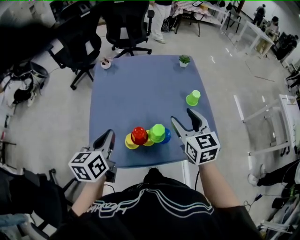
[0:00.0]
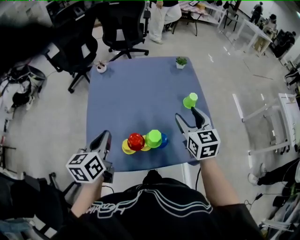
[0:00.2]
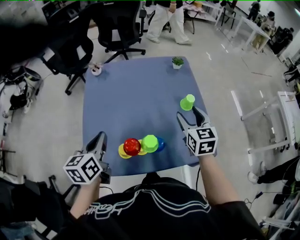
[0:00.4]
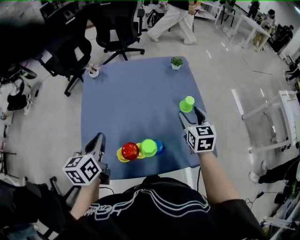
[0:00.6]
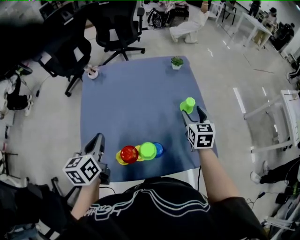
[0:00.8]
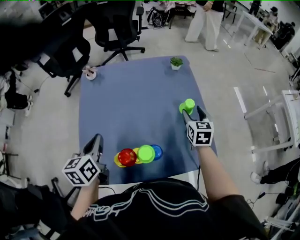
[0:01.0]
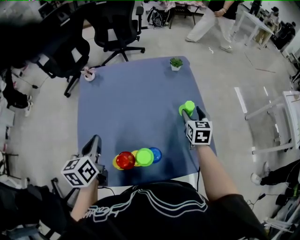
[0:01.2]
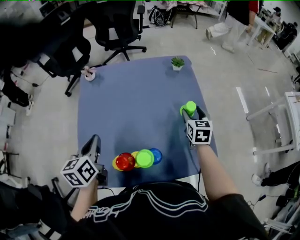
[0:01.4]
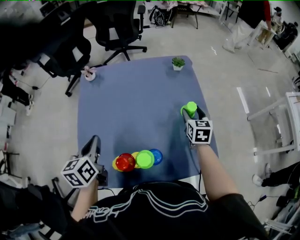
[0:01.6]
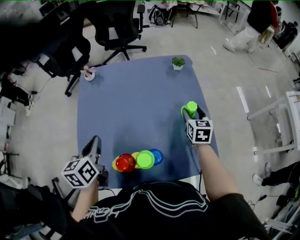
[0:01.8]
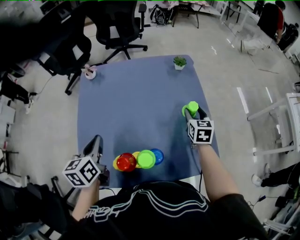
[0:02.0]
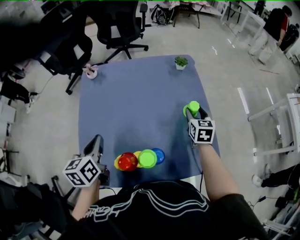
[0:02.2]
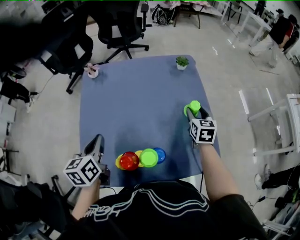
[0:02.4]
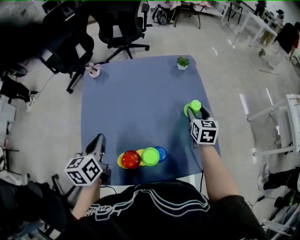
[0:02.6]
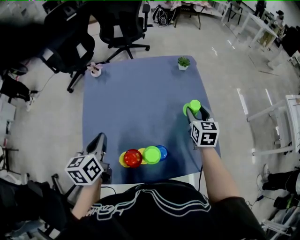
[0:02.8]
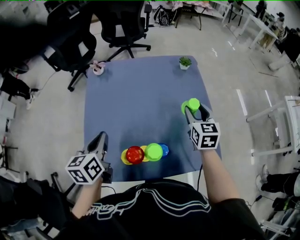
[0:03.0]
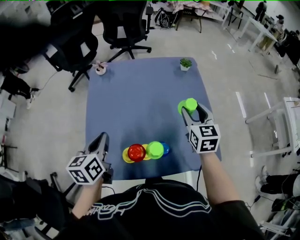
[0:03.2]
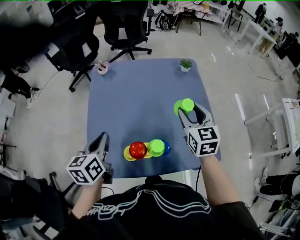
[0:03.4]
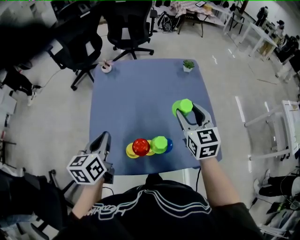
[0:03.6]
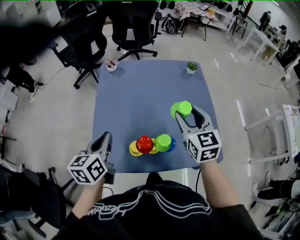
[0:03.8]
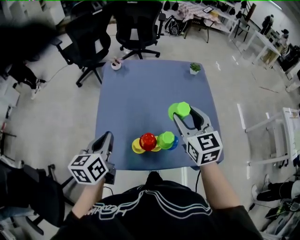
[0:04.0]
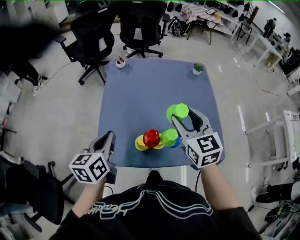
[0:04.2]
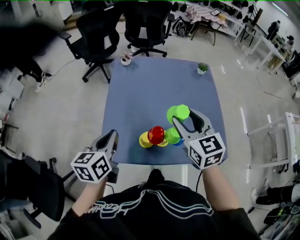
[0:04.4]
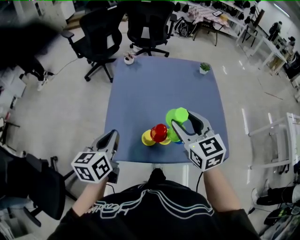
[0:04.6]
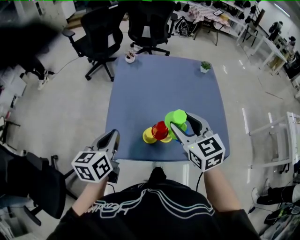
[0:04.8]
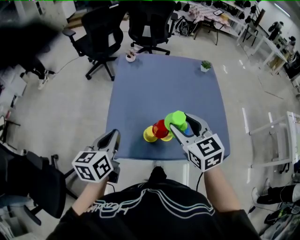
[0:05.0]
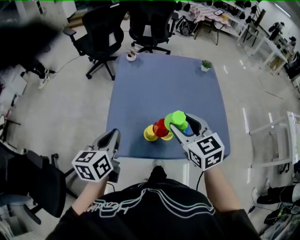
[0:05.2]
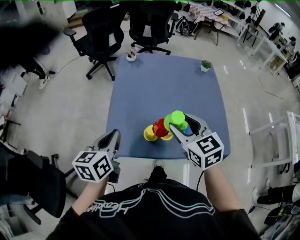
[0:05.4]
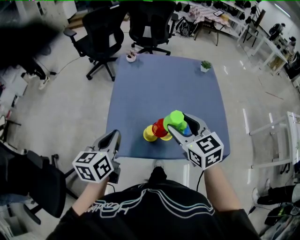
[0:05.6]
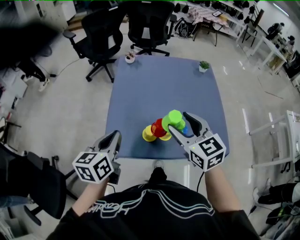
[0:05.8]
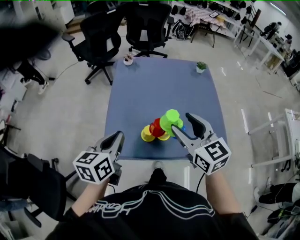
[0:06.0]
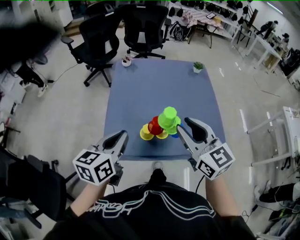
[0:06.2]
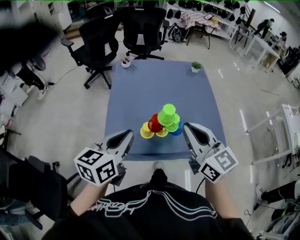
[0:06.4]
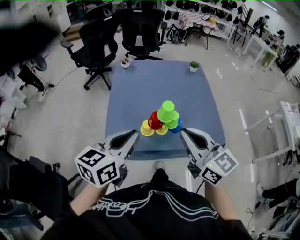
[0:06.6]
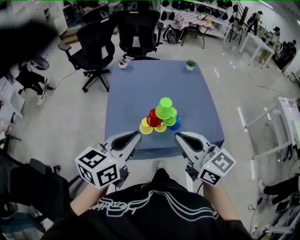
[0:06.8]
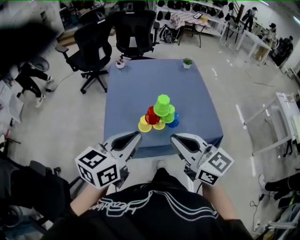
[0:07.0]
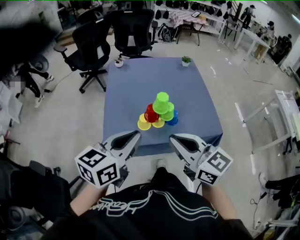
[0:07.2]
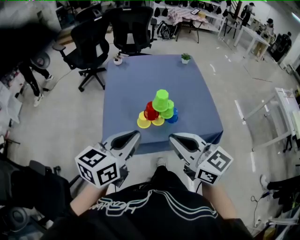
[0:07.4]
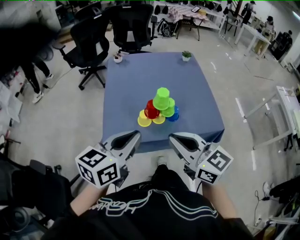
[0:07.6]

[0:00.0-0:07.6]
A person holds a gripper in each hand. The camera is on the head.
0:00.0 to 0:01.6: The left gripper shifts about 10 cm forward. Meanwhile the right gripper heads forward, downward and to the right, covering approximately 25 cm, and rotates roughly 20 degrees.
0:01.6 to 0:03.0: The right gripper moves upward and to the left, approximately 10 cm.
0:03.0 to 0:04.6: The left gripper goes approximately 15 cm backward and to the left, while the right gripper heads to the left, backward and upward, covering roughly 30 cm, and swivels some 30 degrees.
0:04.6 to 0:06.0: The right gripper moves roughly 5 cm.
0:06.0 to 0:07.6: The left gripper is displaced backward, to the right and upward by approximately 15 cm, and changes its angle by some 20 degrees; the right gripper travels backward by roughly 15 cm, and closes up.

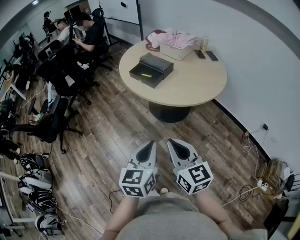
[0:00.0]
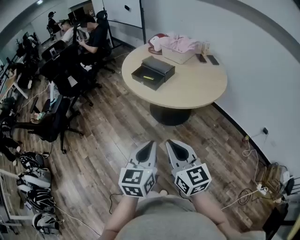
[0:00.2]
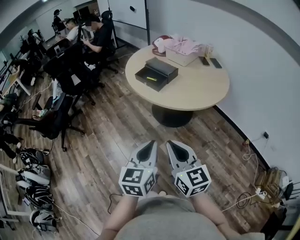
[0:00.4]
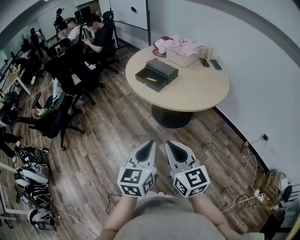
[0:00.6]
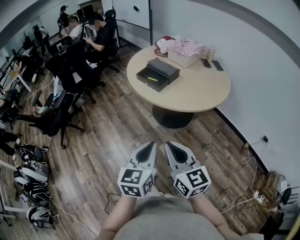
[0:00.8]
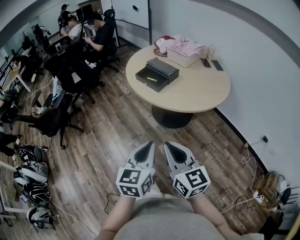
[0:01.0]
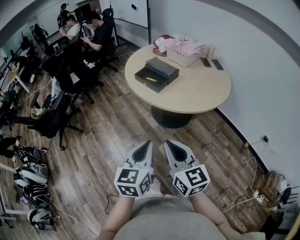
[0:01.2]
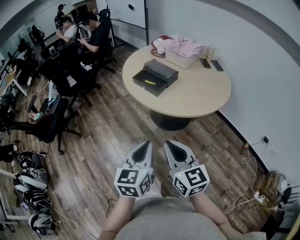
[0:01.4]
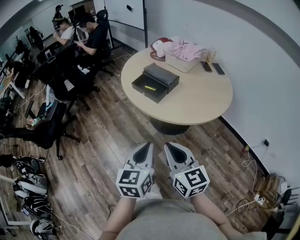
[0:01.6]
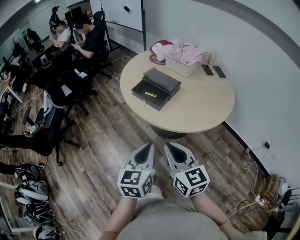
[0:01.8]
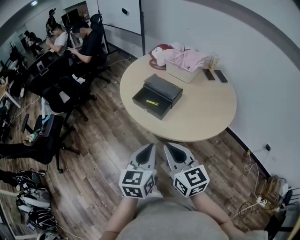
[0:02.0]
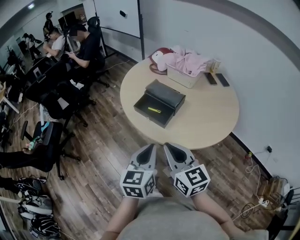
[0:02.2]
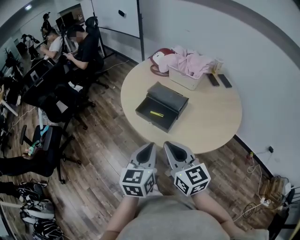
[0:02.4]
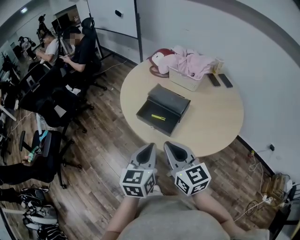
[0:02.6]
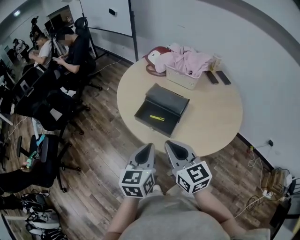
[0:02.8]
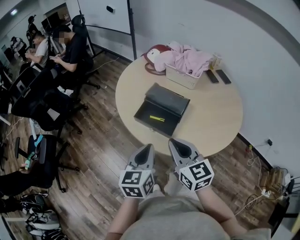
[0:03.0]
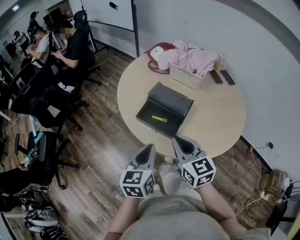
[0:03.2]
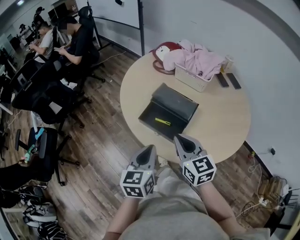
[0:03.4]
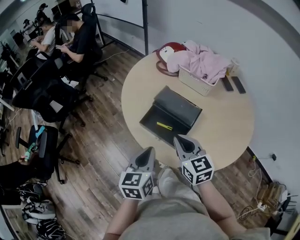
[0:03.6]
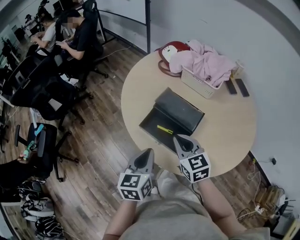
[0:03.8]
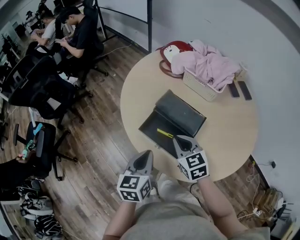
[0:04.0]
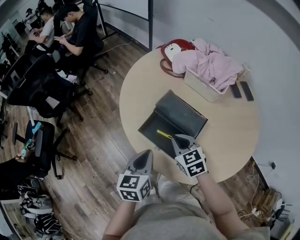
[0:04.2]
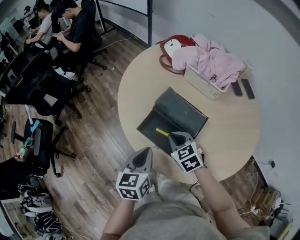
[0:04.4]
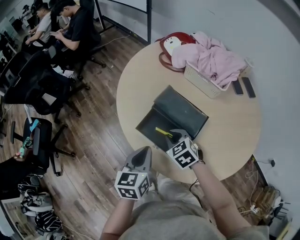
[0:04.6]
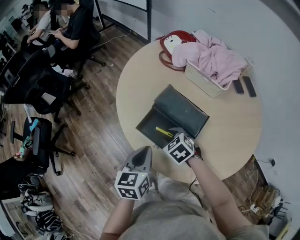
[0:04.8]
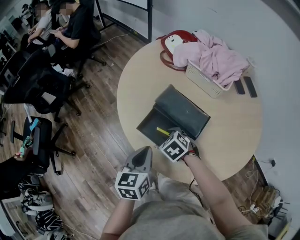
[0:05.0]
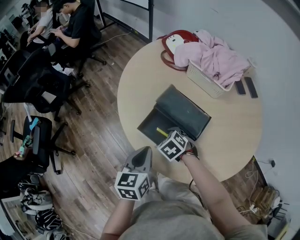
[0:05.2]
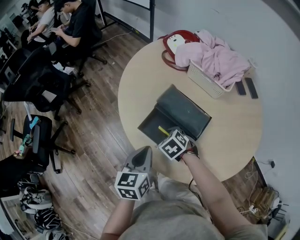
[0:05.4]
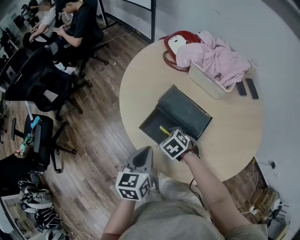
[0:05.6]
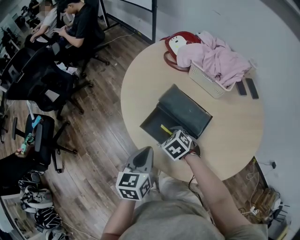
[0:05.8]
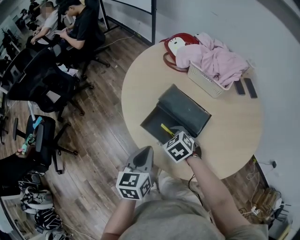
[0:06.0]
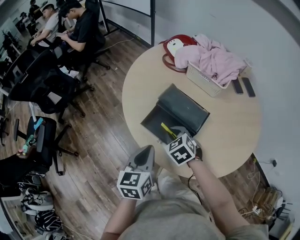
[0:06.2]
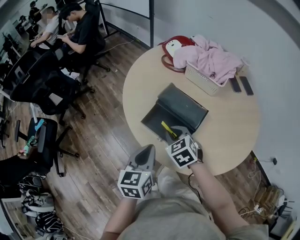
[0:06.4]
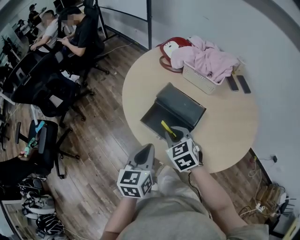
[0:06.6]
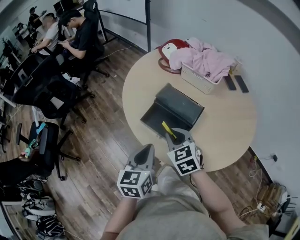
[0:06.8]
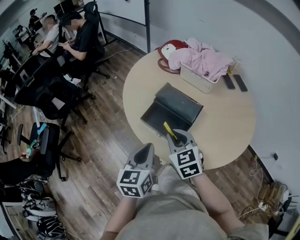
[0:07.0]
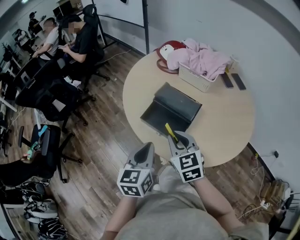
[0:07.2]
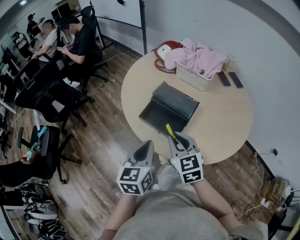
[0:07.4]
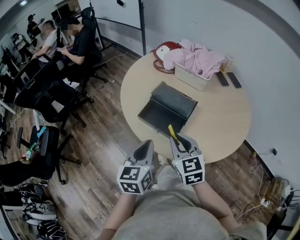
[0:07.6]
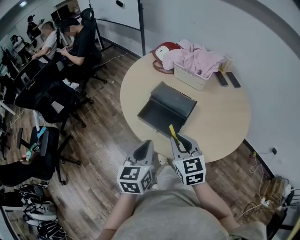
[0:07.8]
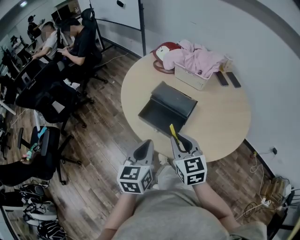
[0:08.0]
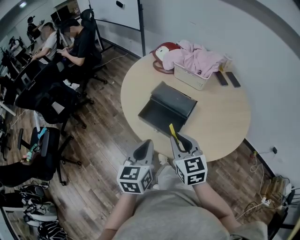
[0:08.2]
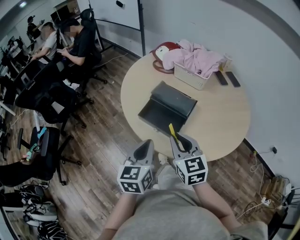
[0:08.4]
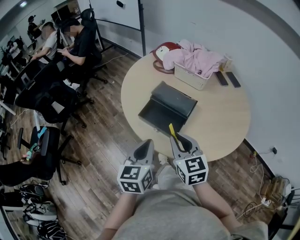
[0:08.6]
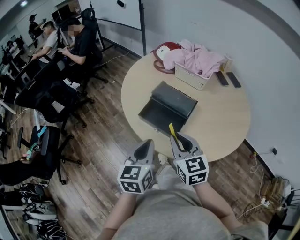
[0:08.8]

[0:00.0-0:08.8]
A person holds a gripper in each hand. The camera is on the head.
0:00.0 to 0:01.4: There are only small adjustments of the grippers.
0:01.4 to 0:03.0: The two grippers go approximately 35 cm forward.
0:03.0 to 0:04.4: The left gripper is displaced forward and downward by approximately 15 cm. Meanwhile the right gripper is displaced forward and downward by some 25 cm, and angles its fingers downward, by roughly 30 degrees.
0:04.4 to 0:05.8: The right gripper travels downward by some 5 cm, and rotates approximately 20 degrees.
0:05.8 to 0:07.4: The right gripper travels upward and backward by some 25 cm, and angles its fingers upward, by roughly 40 degrees; the left gripper heads backward and upward, covering approximately 10 cm.
0:07.4 to 0:08.8: The grippers make only small movements.

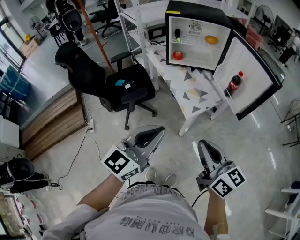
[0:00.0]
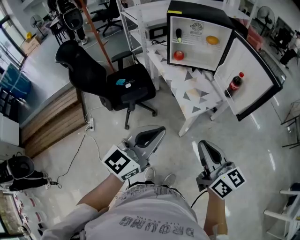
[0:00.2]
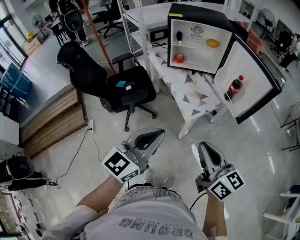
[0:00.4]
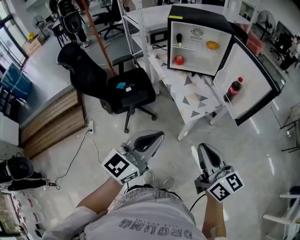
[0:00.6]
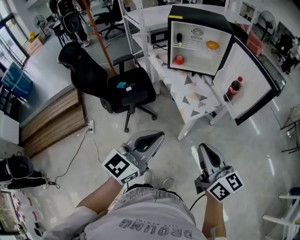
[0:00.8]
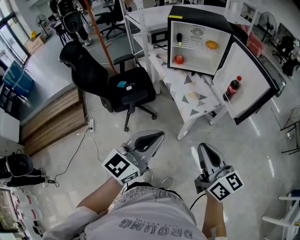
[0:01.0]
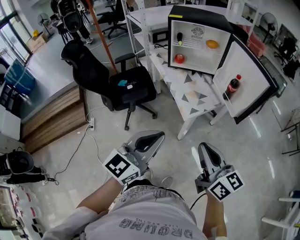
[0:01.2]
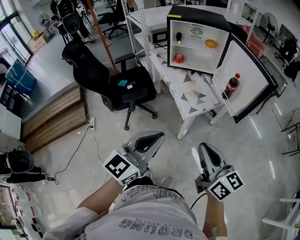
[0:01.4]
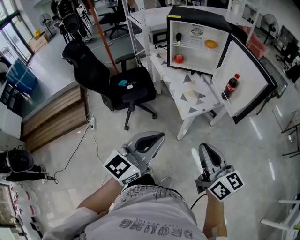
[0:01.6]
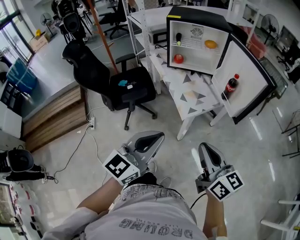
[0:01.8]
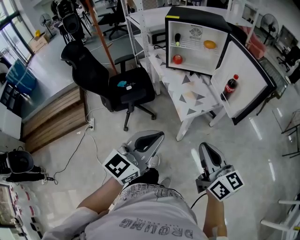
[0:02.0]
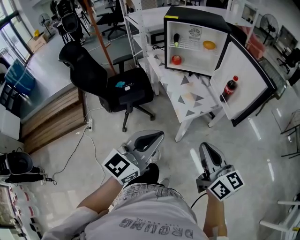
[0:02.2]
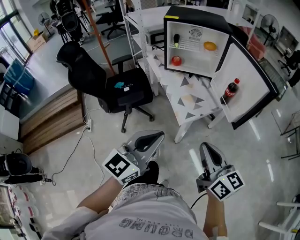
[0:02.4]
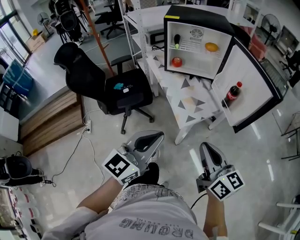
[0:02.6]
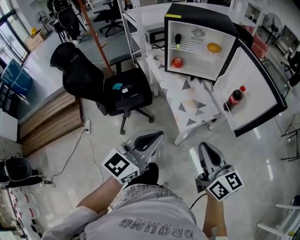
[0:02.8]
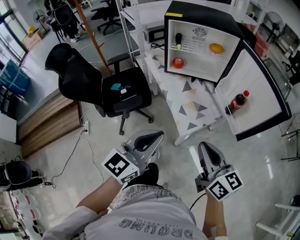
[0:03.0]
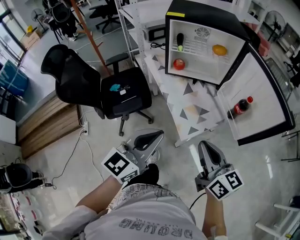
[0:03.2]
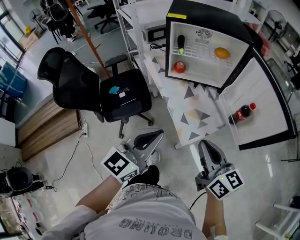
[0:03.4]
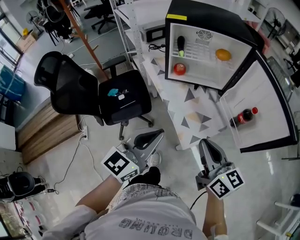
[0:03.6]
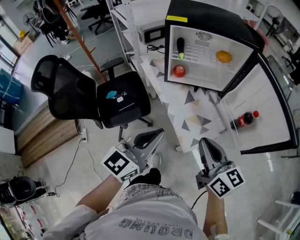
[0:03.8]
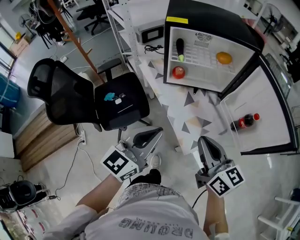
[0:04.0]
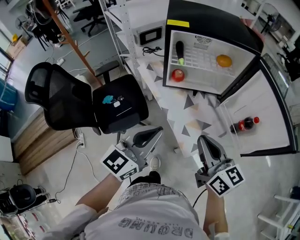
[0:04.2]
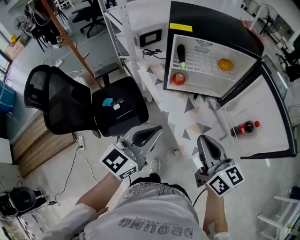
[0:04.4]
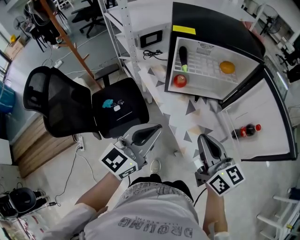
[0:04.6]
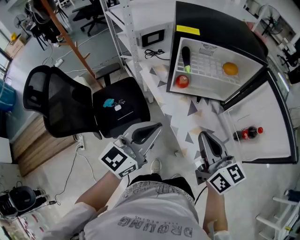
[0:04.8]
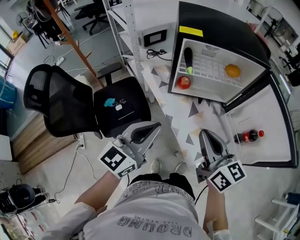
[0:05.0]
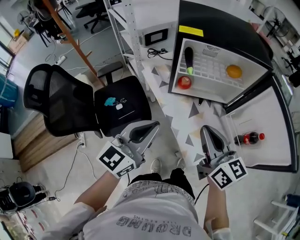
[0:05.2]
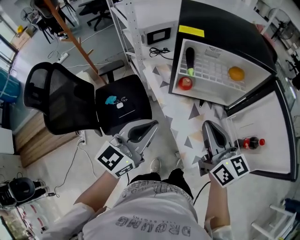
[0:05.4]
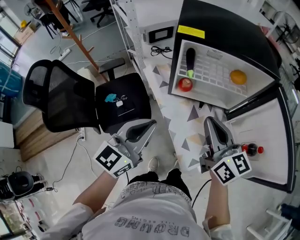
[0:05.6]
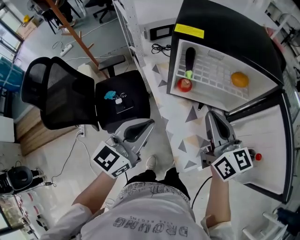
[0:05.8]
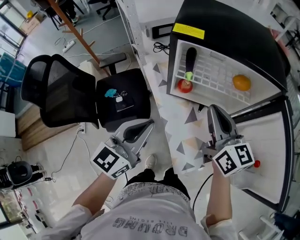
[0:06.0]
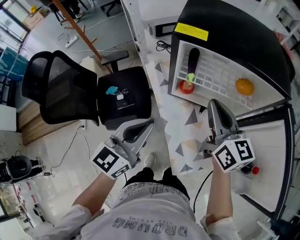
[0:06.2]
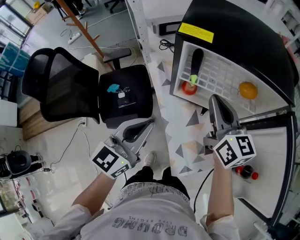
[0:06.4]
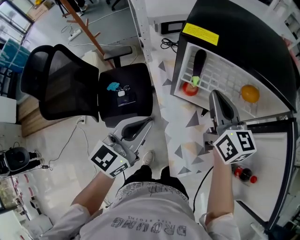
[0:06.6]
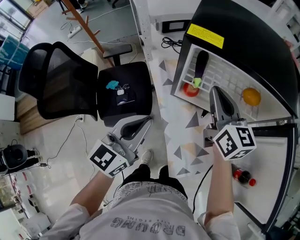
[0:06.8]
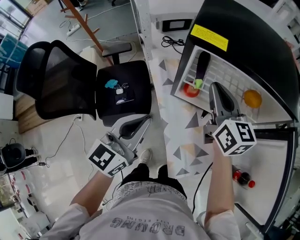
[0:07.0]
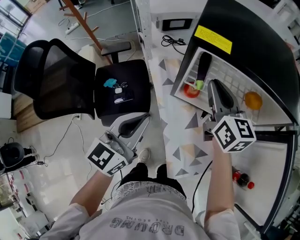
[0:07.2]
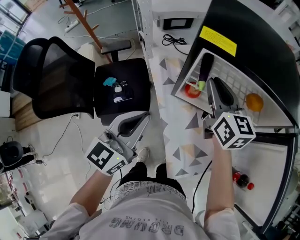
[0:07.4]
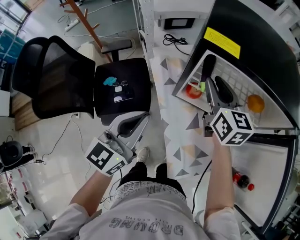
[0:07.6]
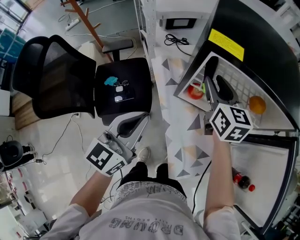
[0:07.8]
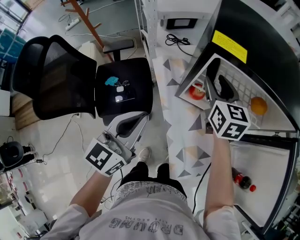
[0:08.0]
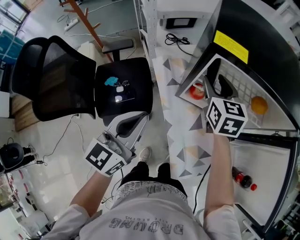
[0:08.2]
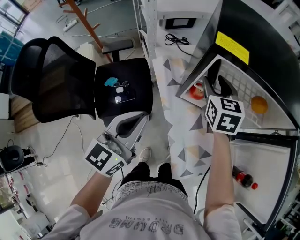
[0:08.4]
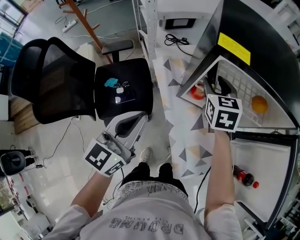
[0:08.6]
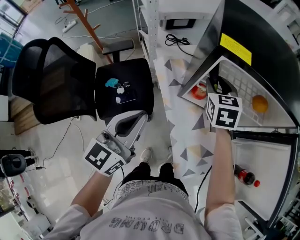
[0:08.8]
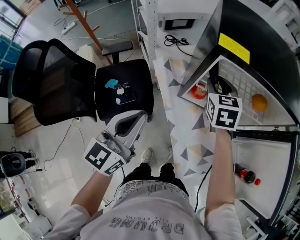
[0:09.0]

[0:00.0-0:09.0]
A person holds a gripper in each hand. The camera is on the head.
0:00.0 to 0:01.6: The left gripper shifts by about 5 cm; the right gripper goes about 5 cm to the right.
0:01.6 to 0:03.0: The two grippers go some 15 cm forward.
0:03.0 to 0:04.4: The grippers both shift forward and to the left by approximately 20 cm.
0:04.4 to 0:06.0: The left gripper goes about 10 cm forward, while the right gripper heads forward, covering some 20 cm.
0:06.0 to 0:07.6: The right gripper shifts approximately 15 cm forward, and opens; the left gripper heads forward, covering some 5 cm.
0:07.6 to 0:09.0: The right gripper ends up about 5 cm from where it was, and turns by approximately 30 degrees.
